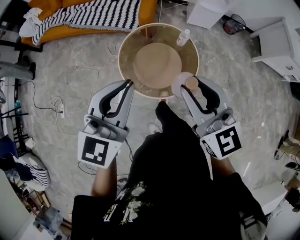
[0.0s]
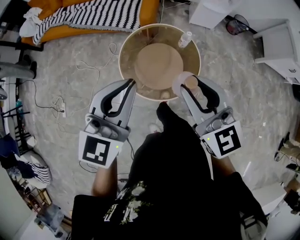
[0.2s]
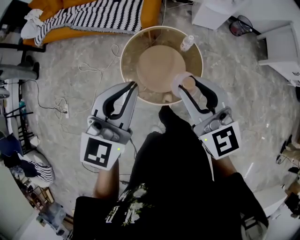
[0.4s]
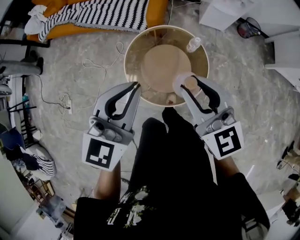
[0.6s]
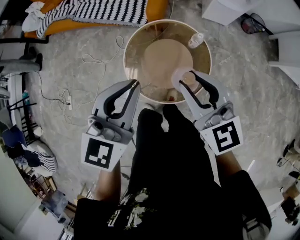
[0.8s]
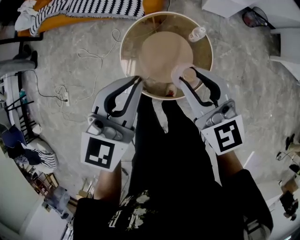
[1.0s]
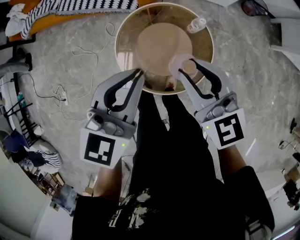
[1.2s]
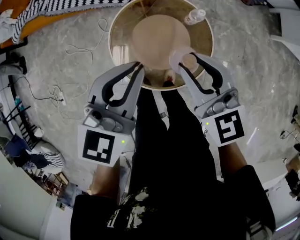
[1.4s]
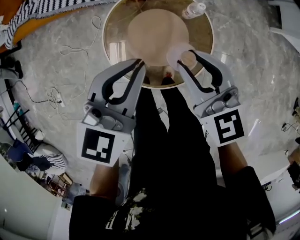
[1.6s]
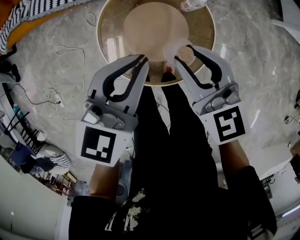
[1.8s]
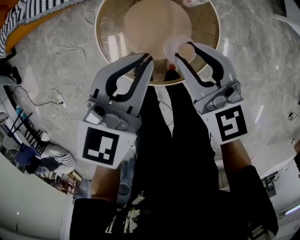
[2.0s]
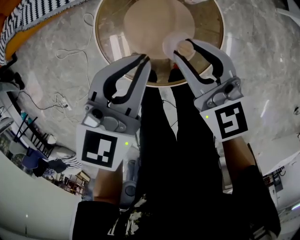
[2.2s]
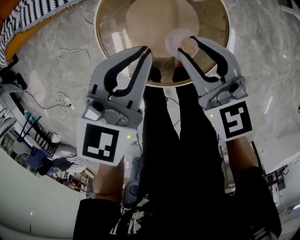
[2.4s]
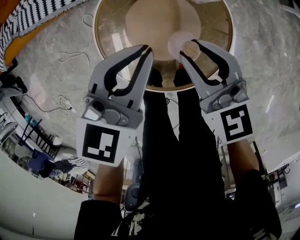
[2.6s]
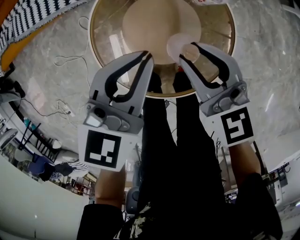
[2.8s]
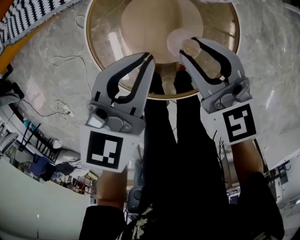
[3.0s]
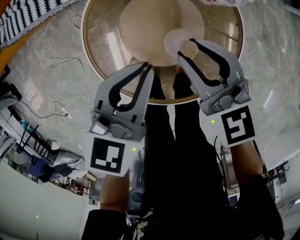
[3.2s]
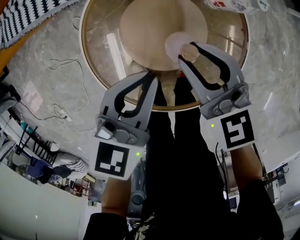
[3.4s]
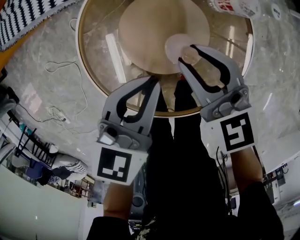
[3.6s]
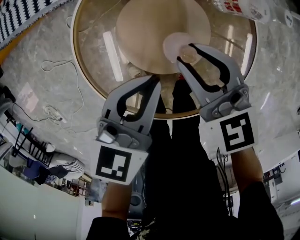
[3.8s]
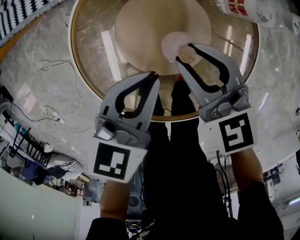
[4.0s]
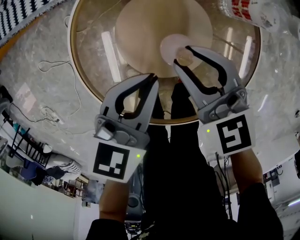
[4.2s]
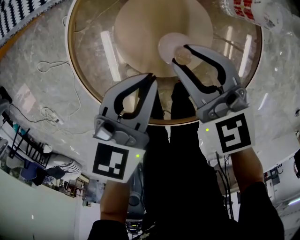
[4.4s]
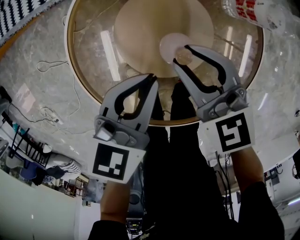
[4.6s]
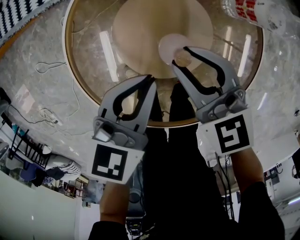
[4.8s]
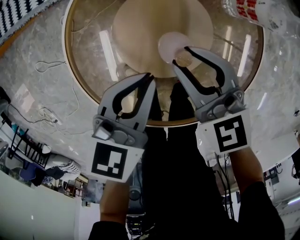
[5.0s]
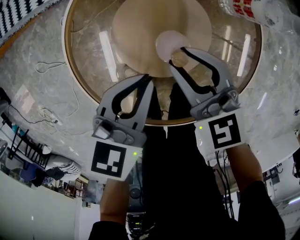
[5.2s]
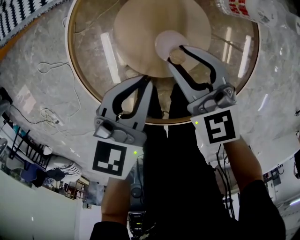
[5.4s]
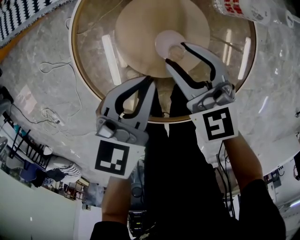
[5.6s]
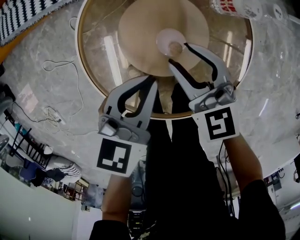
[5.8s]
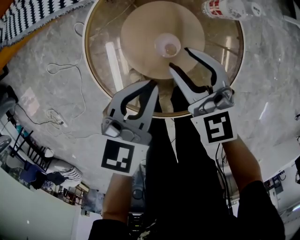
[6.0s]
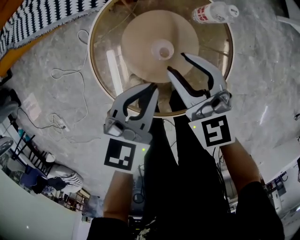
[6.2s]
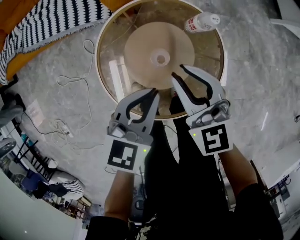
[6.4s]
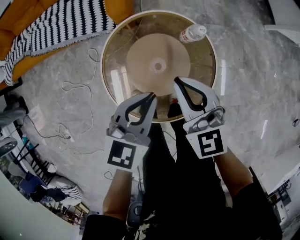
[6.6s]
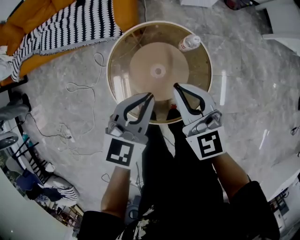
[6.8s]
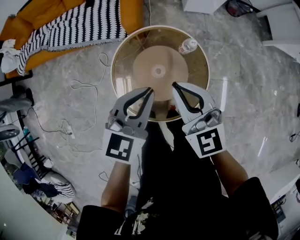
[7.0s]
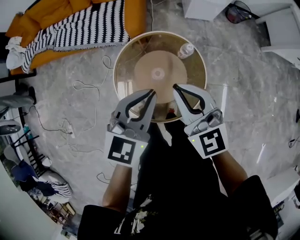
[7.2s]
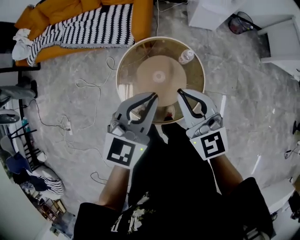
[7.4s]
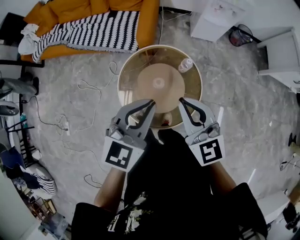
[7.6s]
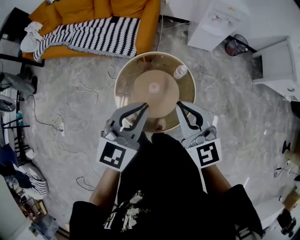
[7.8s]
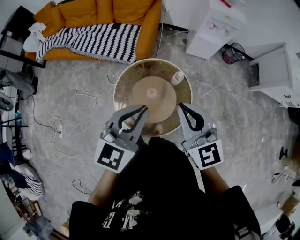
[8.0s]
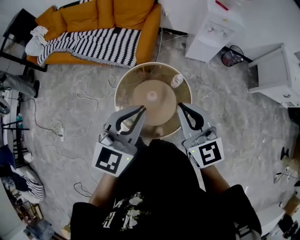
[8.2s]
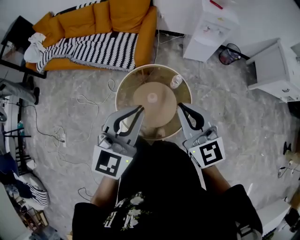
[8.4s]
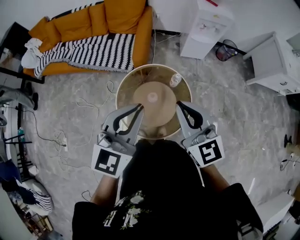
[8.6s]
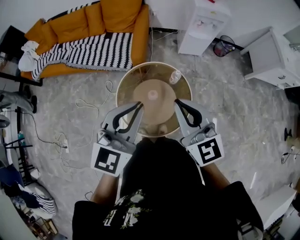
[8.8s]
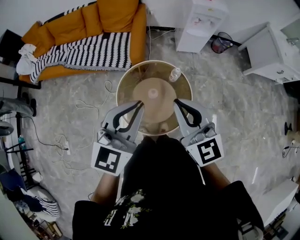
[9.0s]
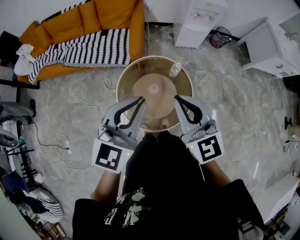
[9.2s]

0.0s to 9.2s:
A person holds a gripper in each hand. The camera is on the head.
0.0s to 1.6s: The left gripper heads forward and downward, covering about 35 cm. Meanwhile the right gripper moves downward and forward, about 35 cm.
1.6s to 3.0s: The two grippers go about 25 cm downward.
3.0s to 4.6s: Both grippers move downward, approximately 15 cm.
4.6s to 6.2s: The two grippers go some 15 cm upward.
6.2s to 7.6s: The grippers both shift upward by roughly 40 cm. The left gripper rotates approximately 20 degrees. The right gripper closes.
7.6s to 9.2s: The left gripper is displaced upward, backward and to the left by roughly 15 cm; the right gripper shifts roughly 15 cm upward and backward.

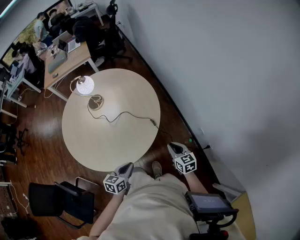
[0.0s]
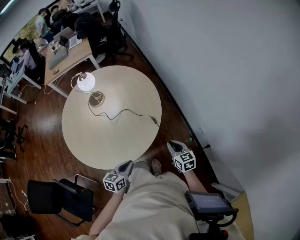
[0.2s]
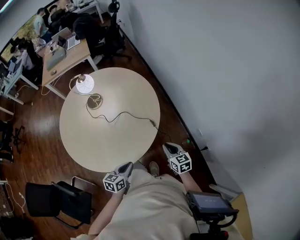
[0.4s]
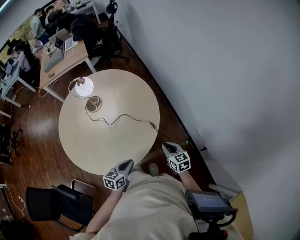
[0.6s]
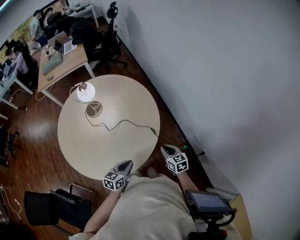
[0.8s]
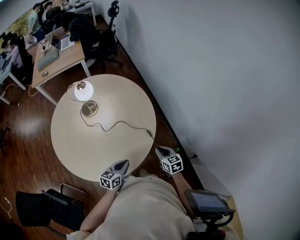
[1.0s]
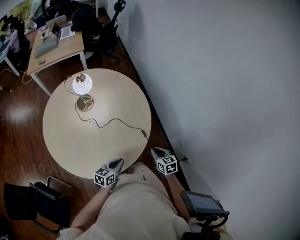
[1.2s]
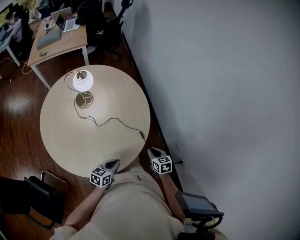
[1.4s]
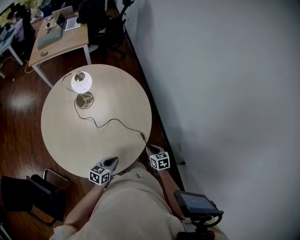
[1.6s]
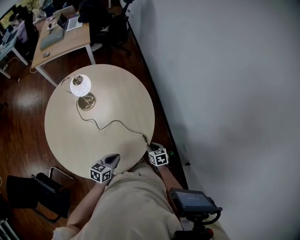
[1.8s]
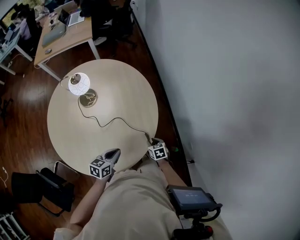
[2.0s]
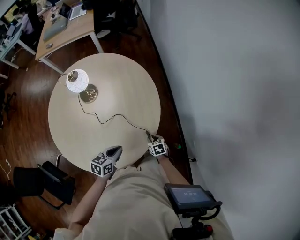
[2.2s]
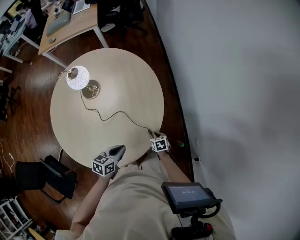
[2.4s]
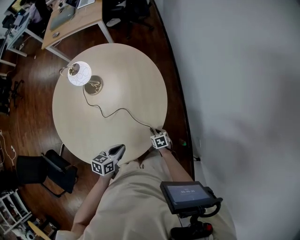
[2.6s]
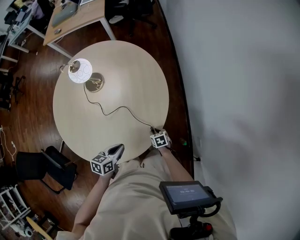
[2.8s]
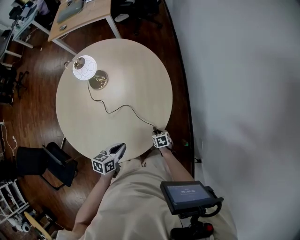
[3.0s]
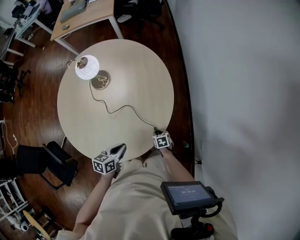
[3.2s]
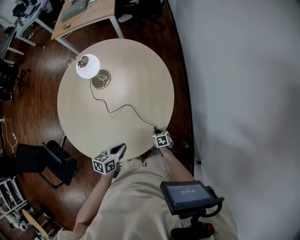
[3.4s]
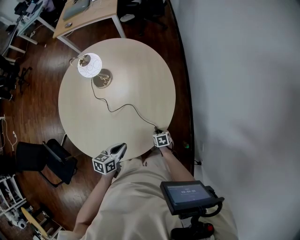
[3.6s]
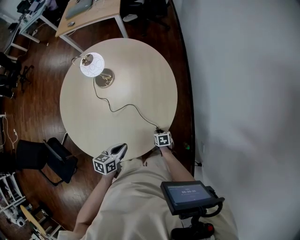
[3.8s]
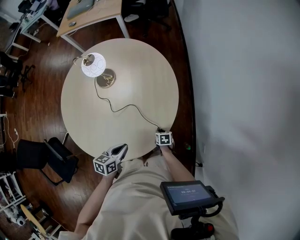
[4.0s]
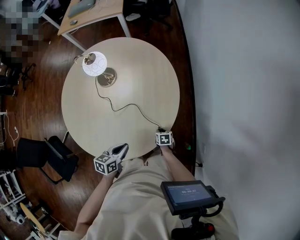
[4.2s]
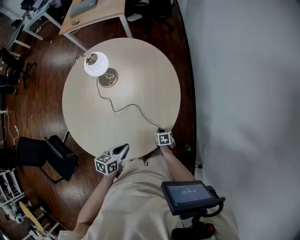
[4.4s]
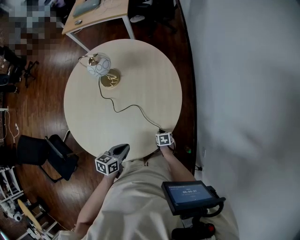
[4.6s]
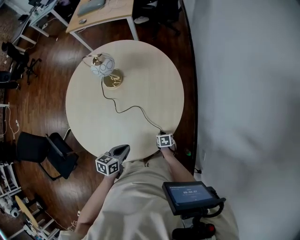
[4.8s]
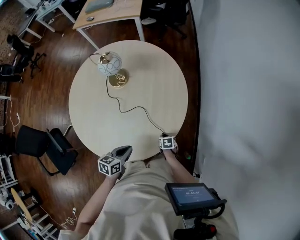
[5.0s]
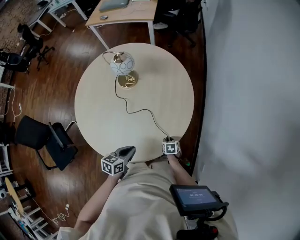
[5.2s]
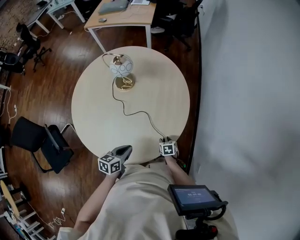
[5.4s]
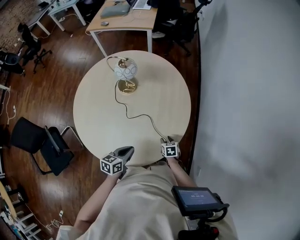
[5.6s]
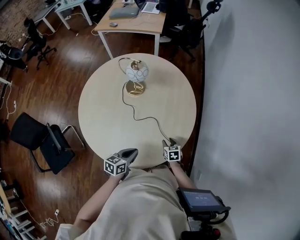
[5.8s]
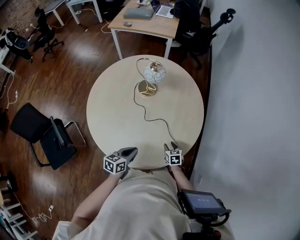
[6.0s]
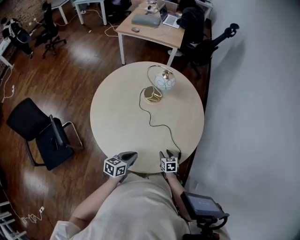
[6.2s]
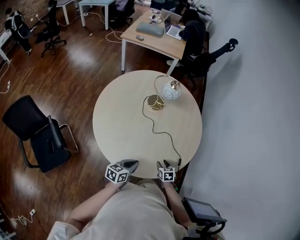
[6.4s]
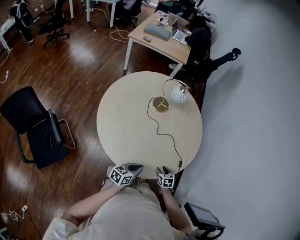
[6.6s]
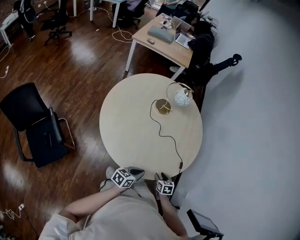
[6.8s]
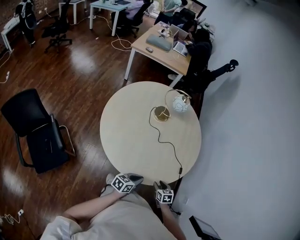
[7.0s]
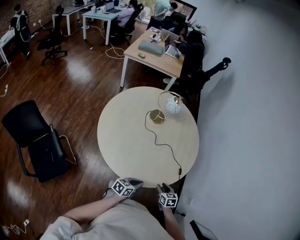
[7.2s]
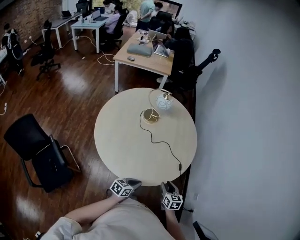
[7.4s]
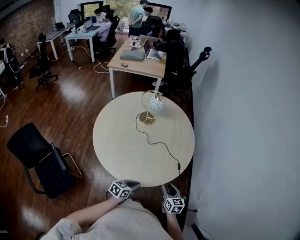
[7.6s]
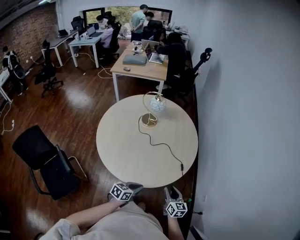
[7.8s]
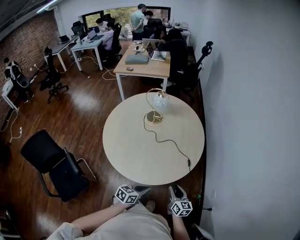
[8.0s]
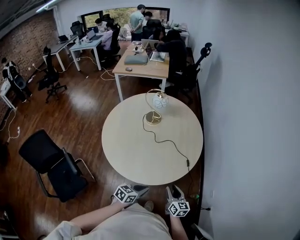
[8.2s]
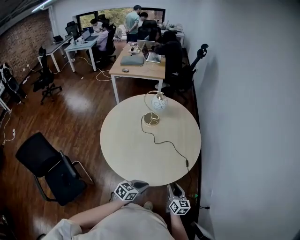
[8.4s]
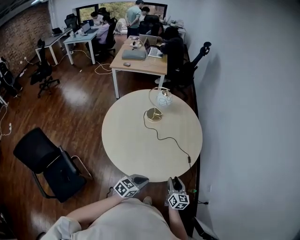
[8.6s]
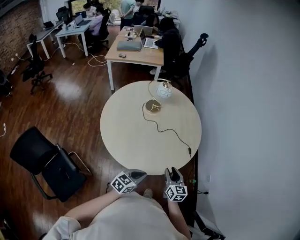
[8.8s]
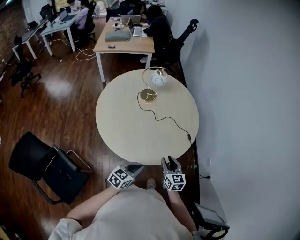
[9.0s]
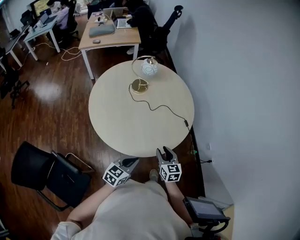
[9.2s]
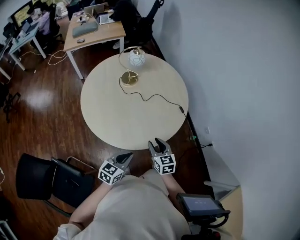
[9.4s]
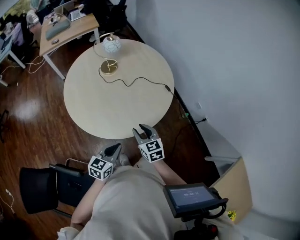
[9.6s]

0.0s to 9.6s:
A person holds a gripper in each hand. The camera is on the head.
0.0s to 1.6s: The left gripper moves forward and to the left, some 15 cm. The right gripper shifts some 15 cm forward, to the left and downward, and turns by approximately 20 degrees.
1.6s to 3.2s: The left gripper heads forward, covering some 5 cm, and turns by roughly 20 degrees; the right gripper travels downward by roughly 20 cm, and changes its angle by some 20 degrees.
3.2s to 4.8s: There are only small adjustments of the grippers.
4.8s to 6.4s: The left gripper is displaced to the left and backward by roughly 20 cm. The right gripper moves to the left, upward and backward, about 25 cm, swivels roughly 20 degrees, and opens its fingers.
6.4s to 8.0s: The left gripper is displaced backward and to the right by roughly 15 cm, and swivels approximately 20 degrees. Meanwhile the right gripper moves backward, upward and to the right, roughly 20 cm, and tilts its fingers approximately 40 degrees upward.
8.0s to 9.6s: Both grippers move to the left, approximately 25 cm. The left gripper changes its angle by roughly 20 degrees, while the right gripper rotates roughly 20 degrees.

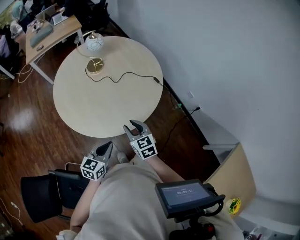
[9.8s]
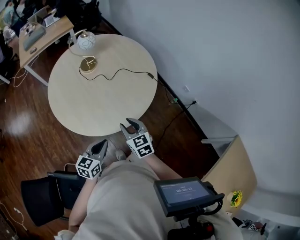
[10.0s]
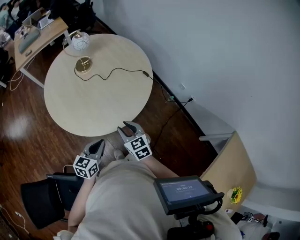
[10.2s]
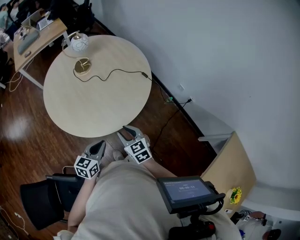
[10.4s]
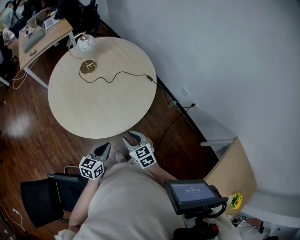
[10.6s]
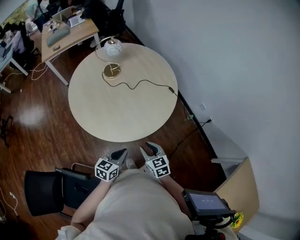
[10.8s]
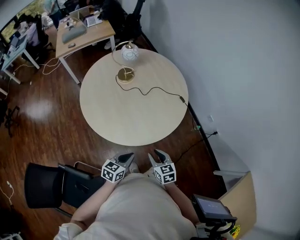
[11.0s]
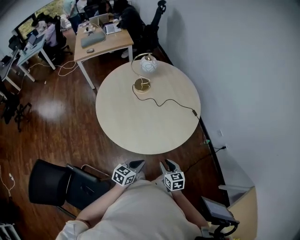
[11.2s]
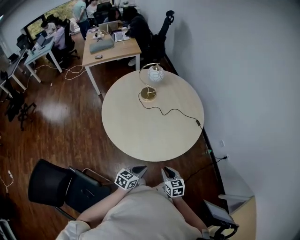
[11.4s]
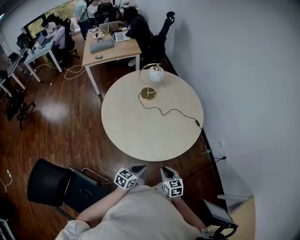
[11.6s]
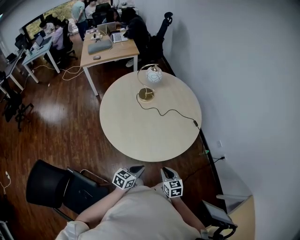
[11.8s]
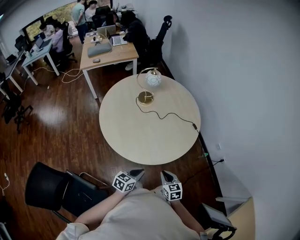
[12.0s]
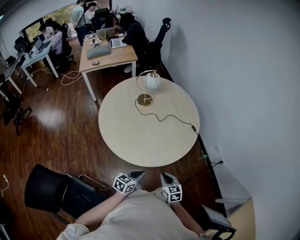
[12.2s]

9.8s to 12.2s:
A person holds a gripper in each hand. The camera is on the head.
9.8s to 11.0s: The right gripper is displaced backward and downward by some 10 cm.
11.0s to 12.2s: The right gripper closes up.

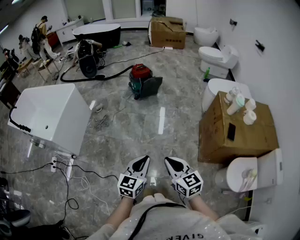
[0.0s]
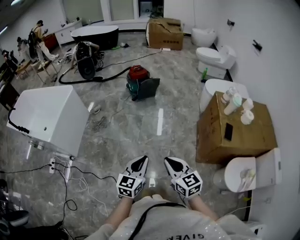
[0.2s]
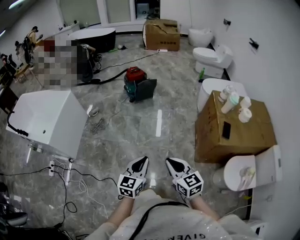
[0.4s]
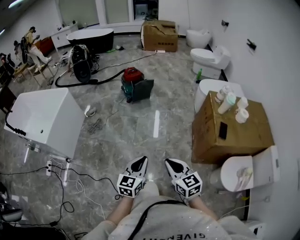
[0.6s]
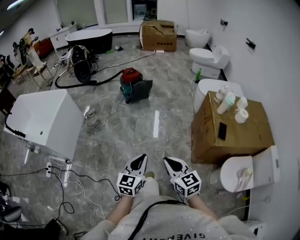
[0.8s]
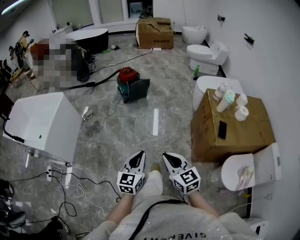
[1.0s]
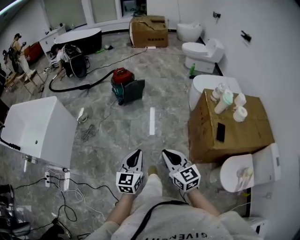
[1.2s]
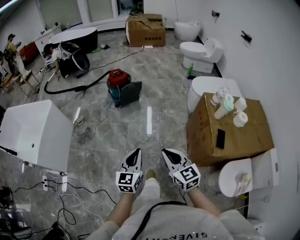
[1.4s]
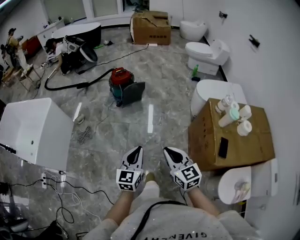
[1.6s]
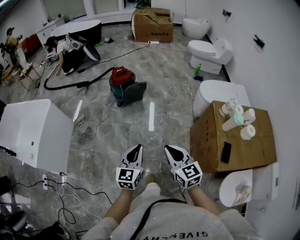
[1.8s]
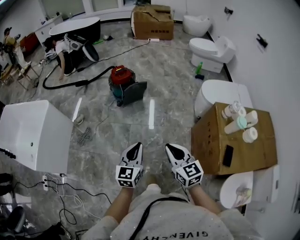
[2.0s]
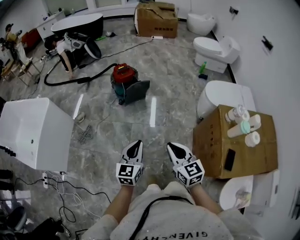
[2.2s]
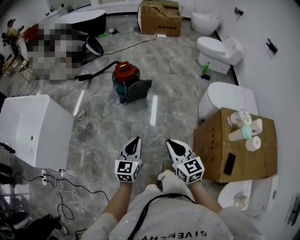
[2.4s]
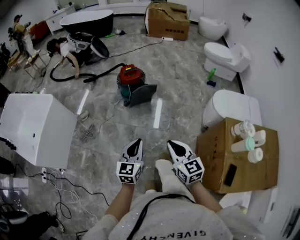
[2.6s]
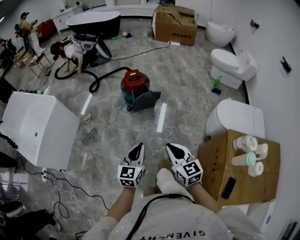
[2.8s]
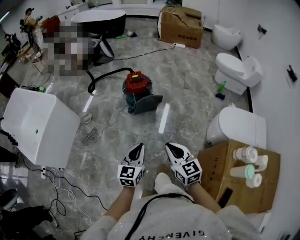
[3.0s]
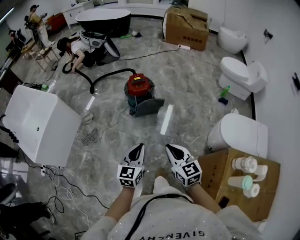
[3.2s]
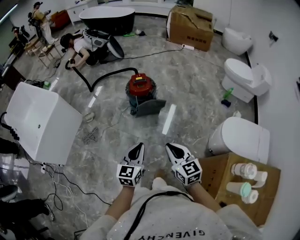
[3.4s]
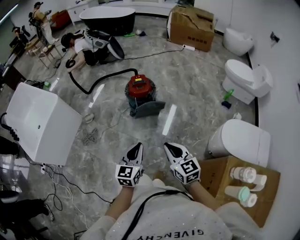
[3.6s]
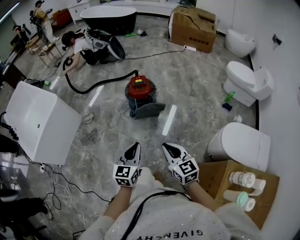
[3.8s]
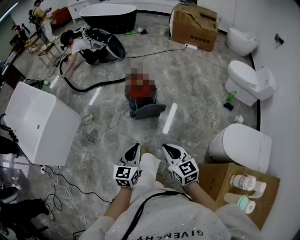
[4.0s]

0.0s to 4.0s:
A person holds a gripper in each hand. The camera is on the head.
0.0s to 1.4s: The two grippers go roughly 20 cm forward and to the right.
1.4s to 2.6s: Both grippers move forward, some 25 cm.
2.6s to 4.0s: The grippers both shift forward by about 20 cm.
